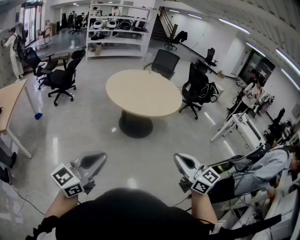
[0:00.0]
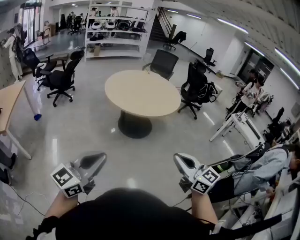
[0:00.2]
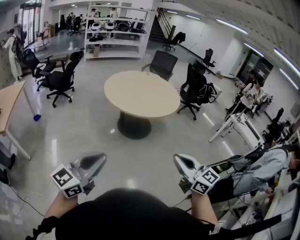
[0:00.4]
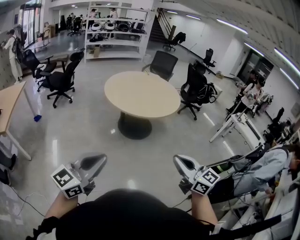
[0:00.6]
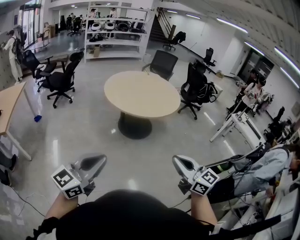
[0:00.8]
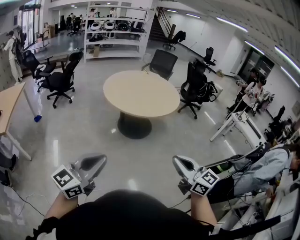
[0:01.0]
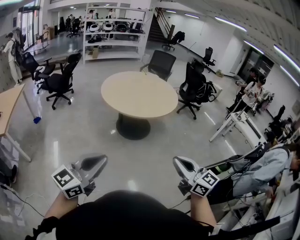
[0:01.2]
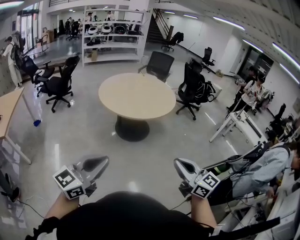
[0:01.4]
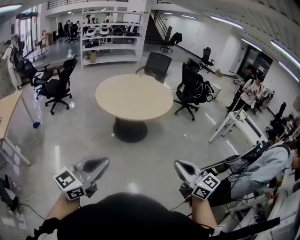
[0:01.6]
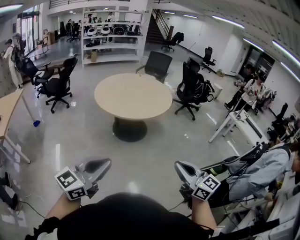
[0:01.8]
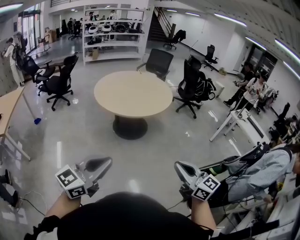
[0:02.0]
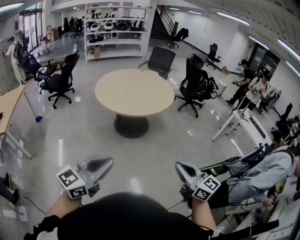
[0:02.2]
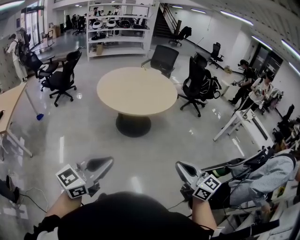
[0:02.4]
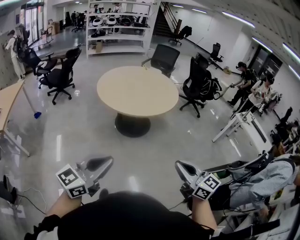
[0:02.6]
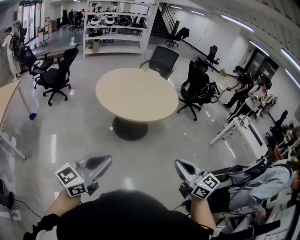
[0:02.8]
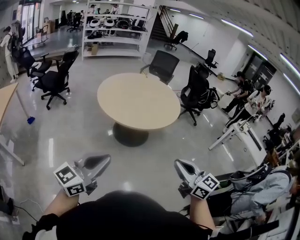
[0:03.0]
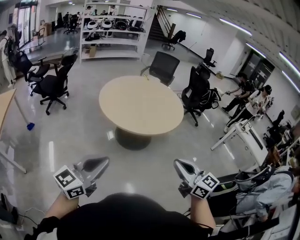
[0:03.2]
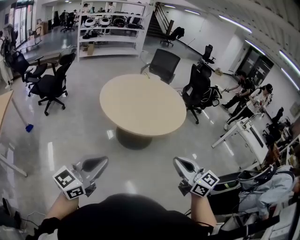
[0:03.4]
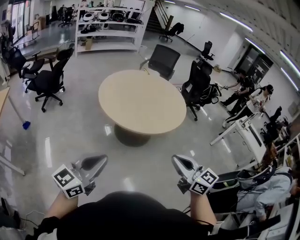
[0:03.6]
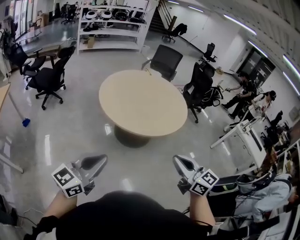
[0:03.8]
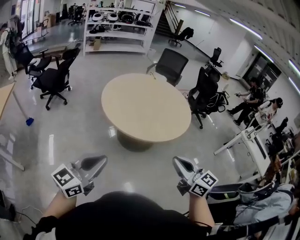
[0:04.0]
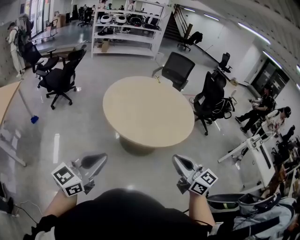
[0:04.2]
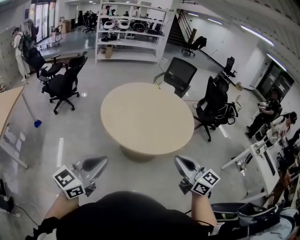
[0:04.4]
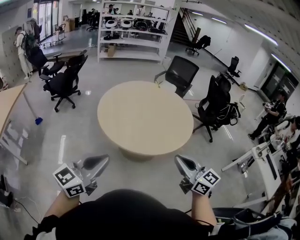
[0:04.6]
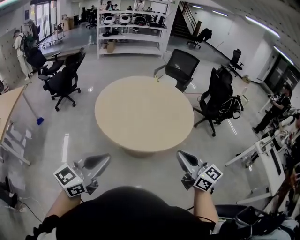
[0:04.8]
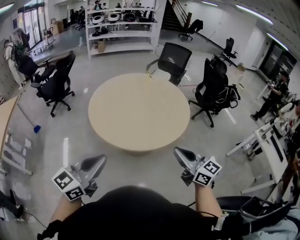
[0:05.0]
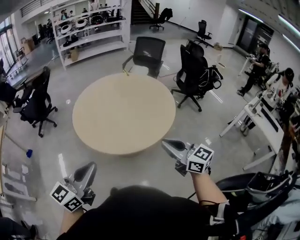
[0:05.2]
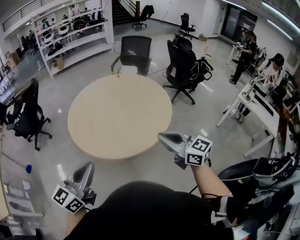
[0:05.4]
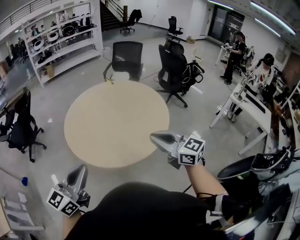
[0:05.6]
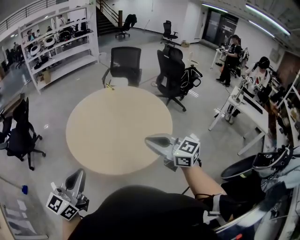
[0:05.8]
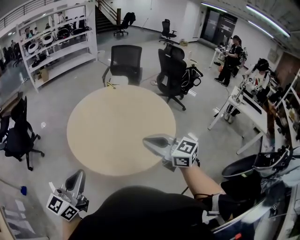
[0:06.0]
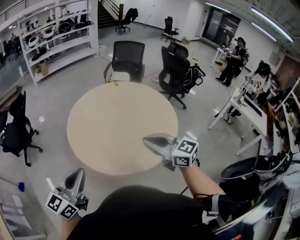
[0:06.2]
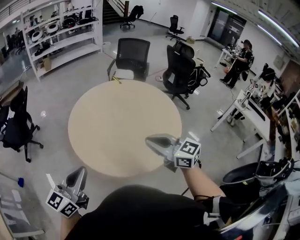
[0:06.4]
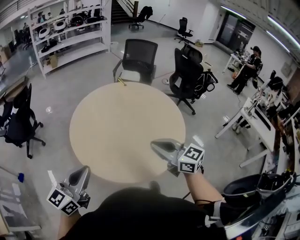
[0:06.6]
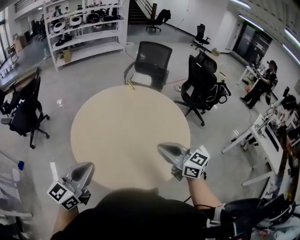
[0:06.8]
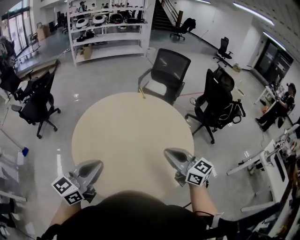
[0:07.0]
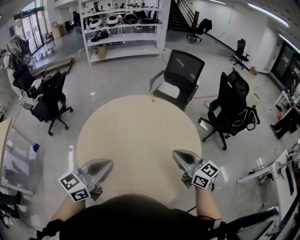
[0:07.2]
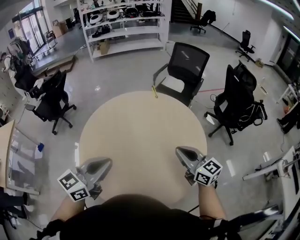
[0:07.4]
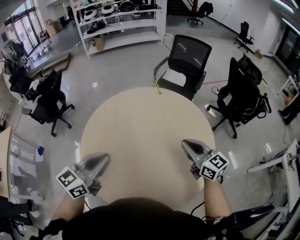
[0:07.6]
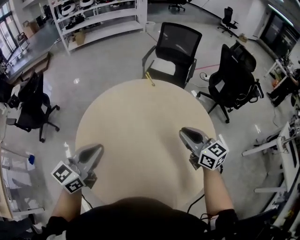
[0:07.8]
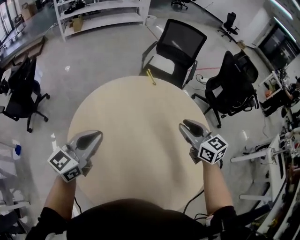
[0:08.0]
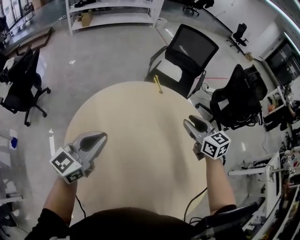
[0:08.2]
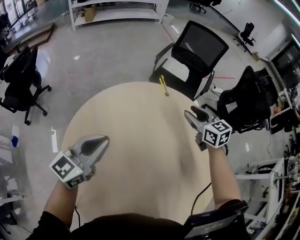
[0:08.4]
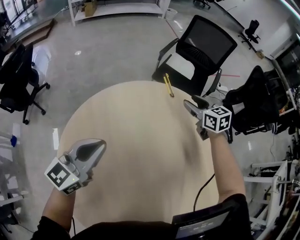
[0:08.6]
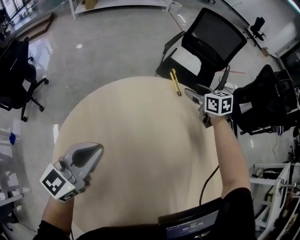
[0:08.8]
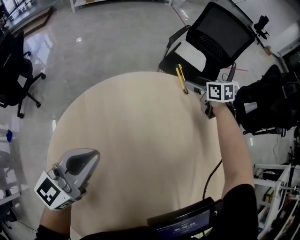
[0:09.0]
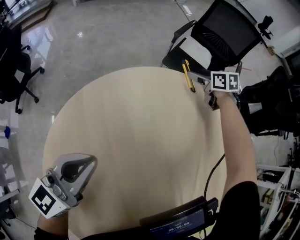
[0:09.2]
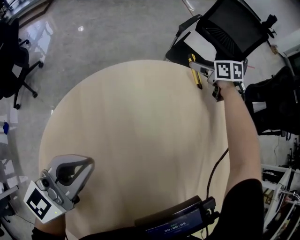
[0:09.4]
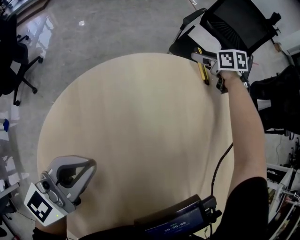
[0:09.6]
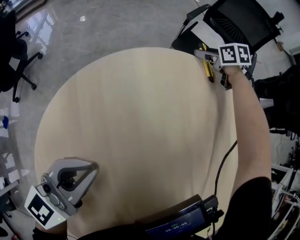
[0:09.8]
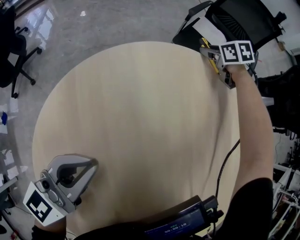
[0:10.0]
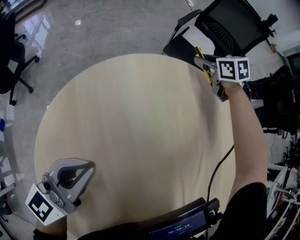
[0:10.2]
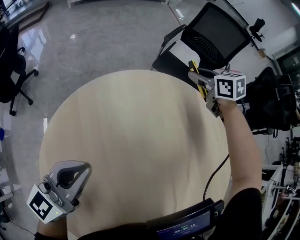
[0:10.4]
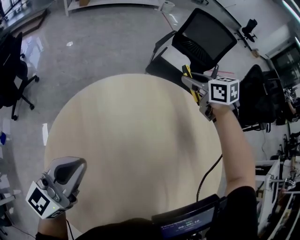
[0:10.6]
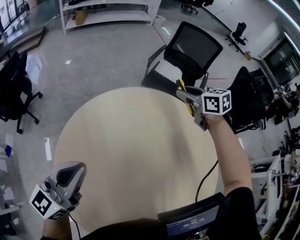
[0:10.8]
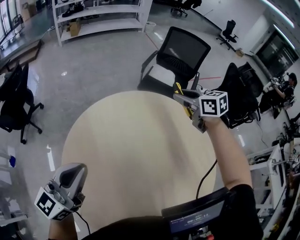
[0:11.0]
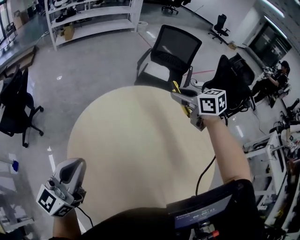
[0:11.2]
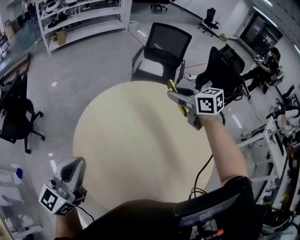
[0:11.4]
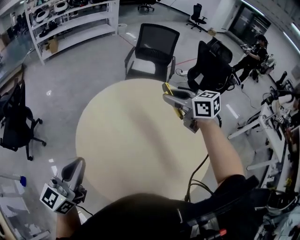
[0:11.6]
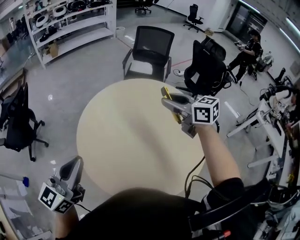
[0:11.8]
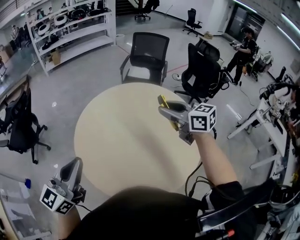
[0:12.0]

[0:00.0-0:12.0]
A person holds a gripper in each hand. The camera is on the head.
0:00.0 to 0:01.6: Both grippers move to the right, roughly 15 cm.
0:01.6 to 0:03.0: Both grippers move forward and to the left, about 20 cm.
0:03.0 to 0:04.4: The two grippers go approximately 25 cm forward.
0:04.4 to 0:06.0: Both grippers travel together forward, some 25 cm.
0:06.0 to 0:07.6: Both grippers move forward and to the right, roughly 40 cm.
0:07.6 to 0:09.0: The left gripper travels forward and downward by about 40 cm; the right gripper goes roughly 70 cm forward and downward, points its fingers about 30 degrees further downward, and opens up.
0:09.0 to 0:10.4: The right gripper goes about 10 cm upward, and closes its fingers; the left gripper travels downward and back again, about 5 cm each way.
0:10.4 to 0:12.0: The two grippers go about 50 cm backward and upward. The right gripper rotates some 30 degrees.

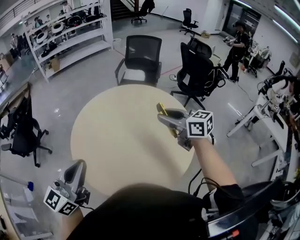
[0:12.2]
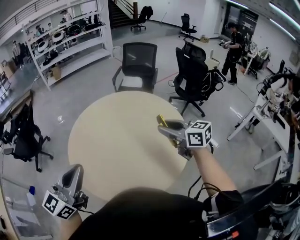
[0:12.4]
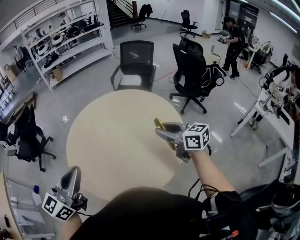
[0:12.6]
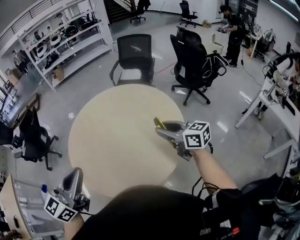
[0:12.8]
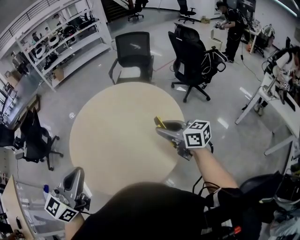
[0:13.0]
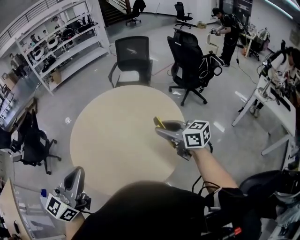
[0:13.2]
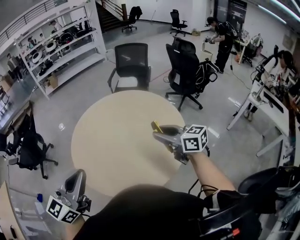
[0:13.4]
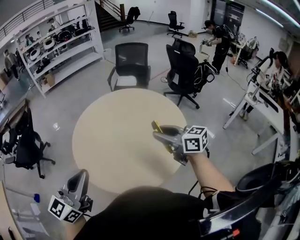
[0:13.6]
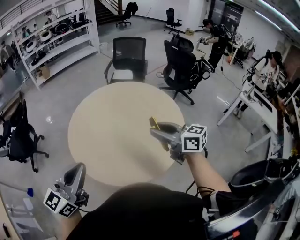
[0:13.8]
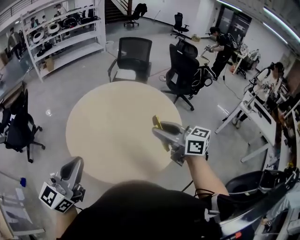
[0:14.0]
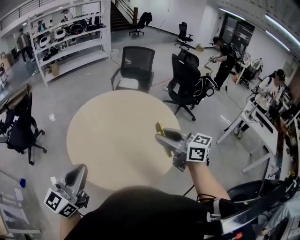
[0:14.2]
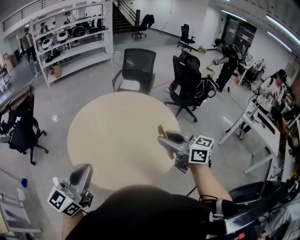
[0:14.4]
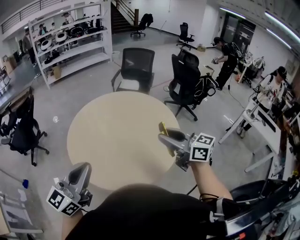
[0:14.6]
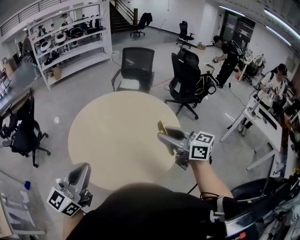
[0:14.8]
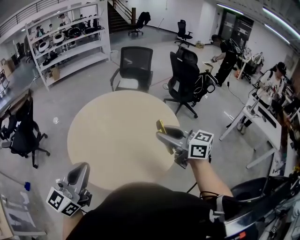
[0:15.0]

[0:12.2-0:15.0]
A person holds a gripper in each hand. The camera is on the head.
0:12.2 to 0:13.6: Both grippers travel together backward, some 10 cm. The right gripper reaches approximately 15 cm to the right, then returns. The left gripper goes to the right and returns, approximately 15 cm each way.
0:13.6 to 0:15.0: The right gripper goes approximately 10 cm upward and backward. The left gripper shifts by approximately 5 cm.

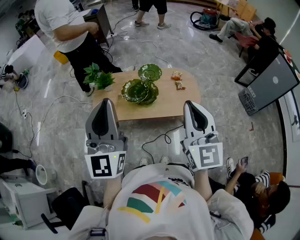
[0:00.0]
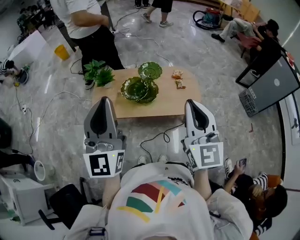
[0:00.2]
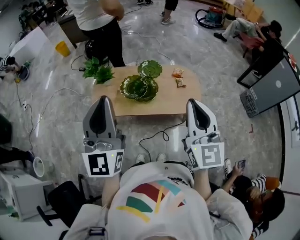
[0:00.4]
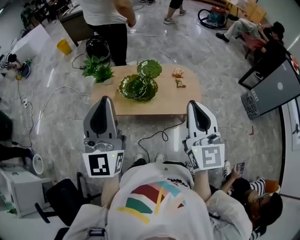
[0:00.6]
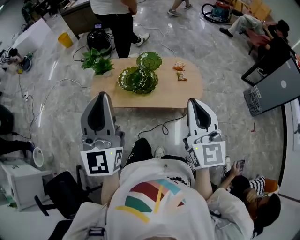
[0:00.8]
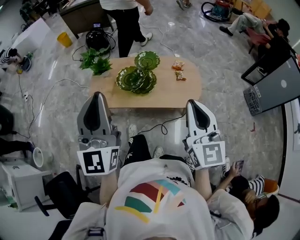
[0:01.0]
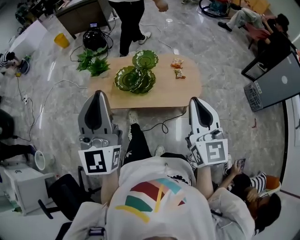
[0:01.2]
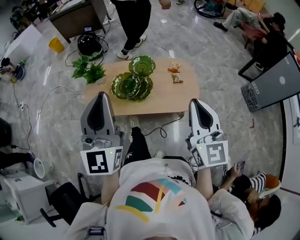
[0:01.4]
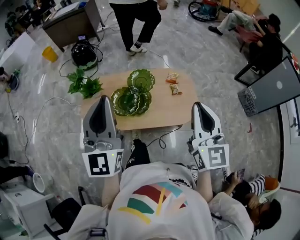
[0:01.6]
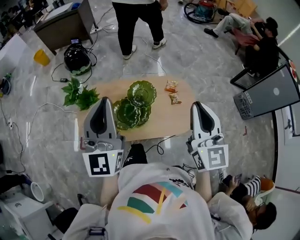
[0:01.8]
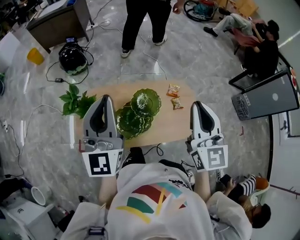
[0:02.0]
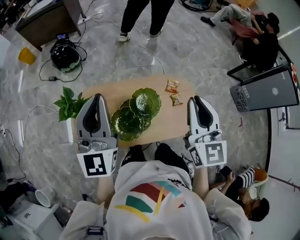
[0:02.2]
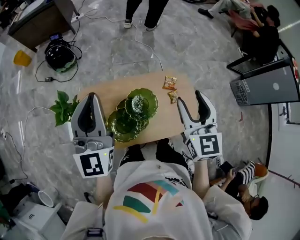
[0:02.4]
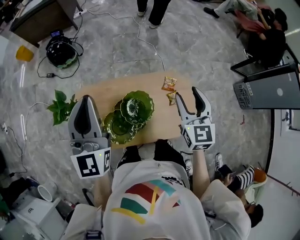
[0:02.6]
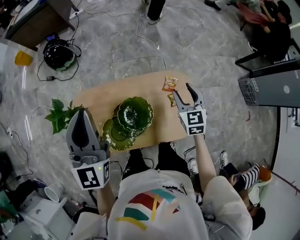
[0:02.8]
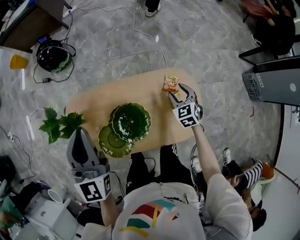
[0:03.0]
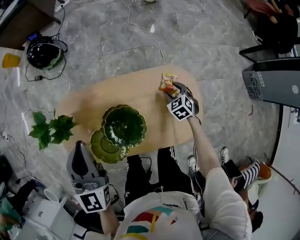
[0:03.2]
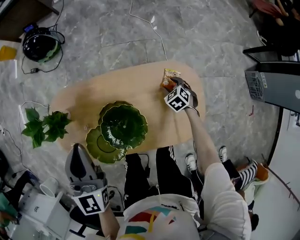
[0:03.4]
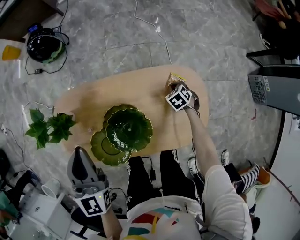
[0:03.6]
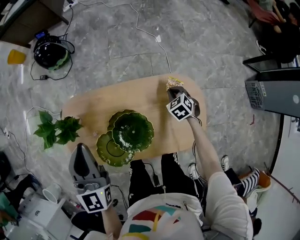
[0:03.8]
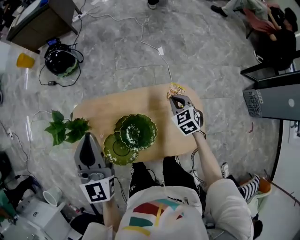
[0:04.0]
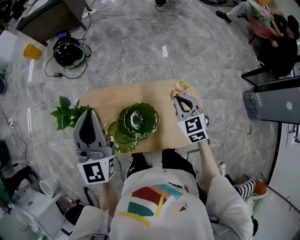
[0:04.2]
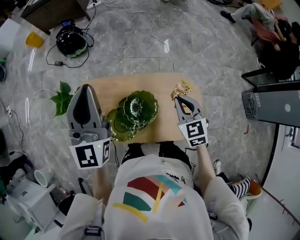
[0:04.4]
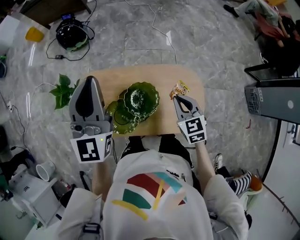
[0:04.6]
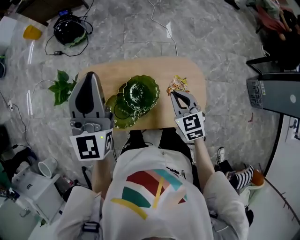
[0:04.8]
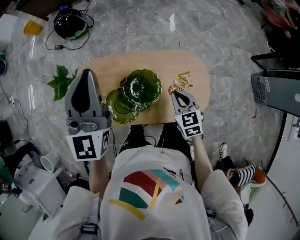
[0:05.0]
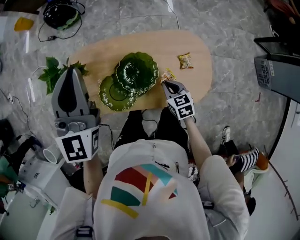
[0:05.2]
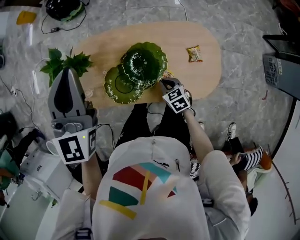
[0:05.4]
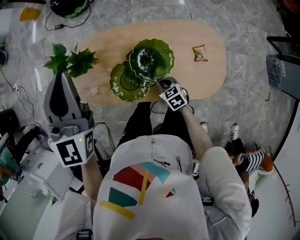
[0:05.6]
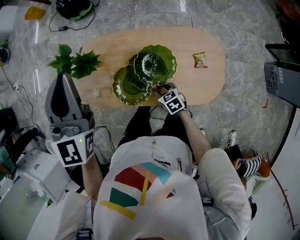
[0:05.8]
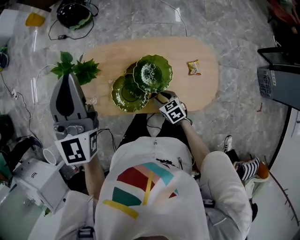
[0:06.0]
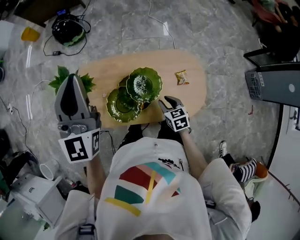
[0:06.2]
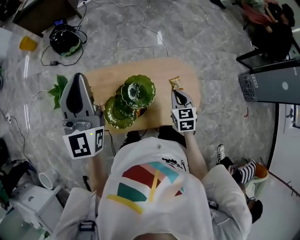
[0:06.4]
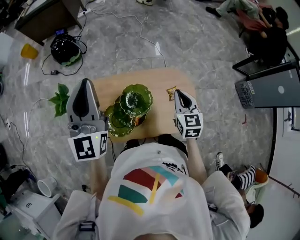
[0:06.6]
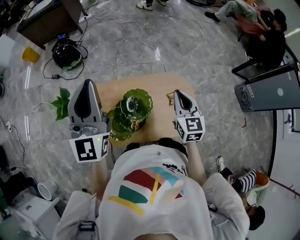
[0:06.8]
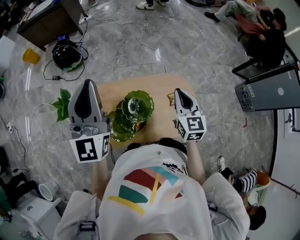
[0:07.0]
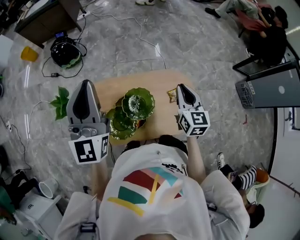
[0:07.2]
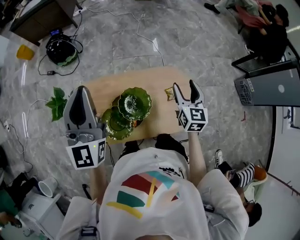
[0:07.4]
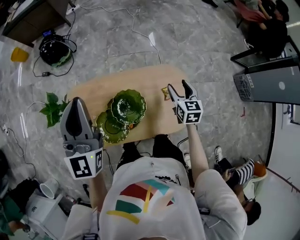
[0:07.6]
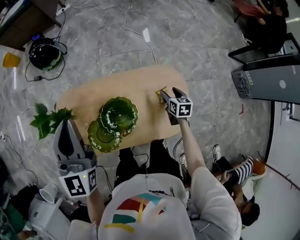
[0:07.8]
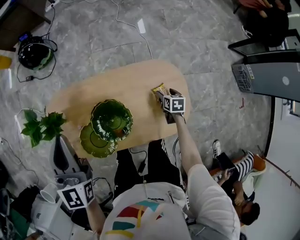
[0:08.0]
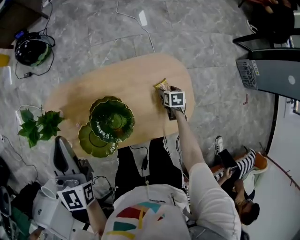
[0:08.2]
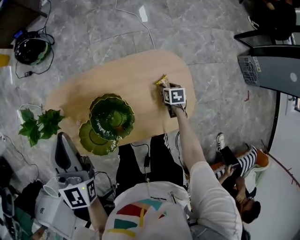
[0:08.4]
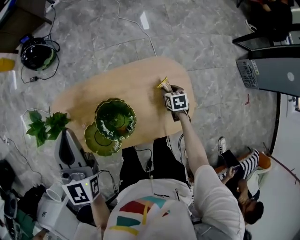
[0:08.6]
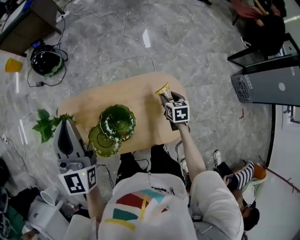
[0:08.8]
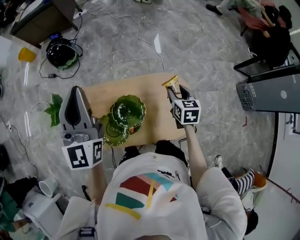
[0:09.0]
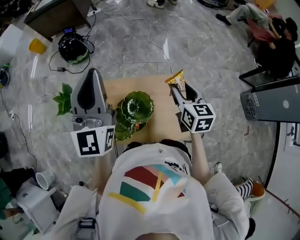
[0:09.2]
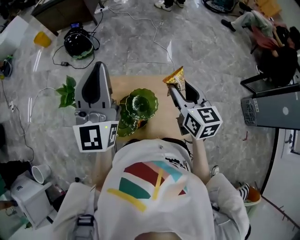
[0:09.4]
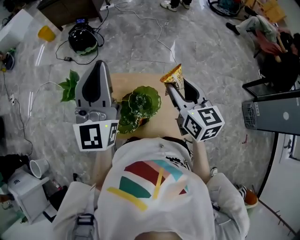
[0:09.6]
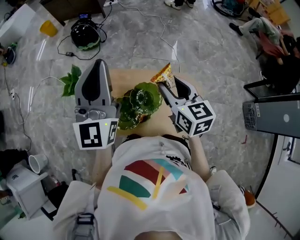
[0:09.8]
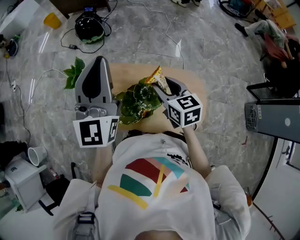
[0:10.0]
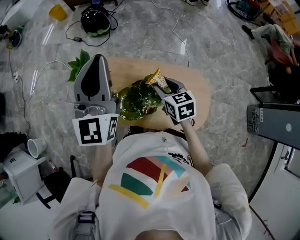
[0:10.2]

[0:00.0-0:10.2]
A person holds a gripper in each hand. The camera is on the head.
0:00.0 to 0:01.4: The right gripper is displaced to the right, forward and downward by about 15 cm. Meanwhile the left gripper moves forward and to the right, approximately 10 cm.
0:01.4 to 0:03.0: The left gripper shifts about 40 cm forward. Meanwhile the right gripper heads forward and downward, covering approximately 60 cm, angles its fingers downward, by approximately 40 degrees, and opens its fingers.
0:03.0 to 0:04.4: The left gripper goes roughly 10 cm upward. The right gripper heads upward and to the left, covering roughly 20 cm, and closes its fingers.
0:04.4 to 0:05.8: The right gripper moves downward and to the left, about 35 cm, turns by approximately 40 degrees, and opens, while the left gripper travels to the left by approximately 5 cm.
0:05.8 to 0:07.2: The right gripper heads upward, covering some 30 cm, tilts its fingers roughly 30 degrees upward, and closes its fingers. Meanwhile the left gripper moves some 10 cm, and swivels some 20 degrees.
0:07.2 to 0:08.8: The right gripper shifts about 25 cm downward, angles its fingers downward, by roughly 30 degrees, and opens up. Meanwhile the left gripper moves downward, some 10 cm.
0:08.8 to 0:10.2: The right gripper heads to the left and upward, covering roughly 35 cm, and changes its angle by some 40 degrees, while the left gripper moves upward and to the left, about 15 cm.
